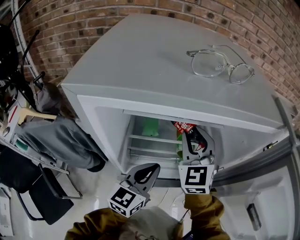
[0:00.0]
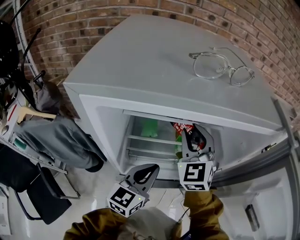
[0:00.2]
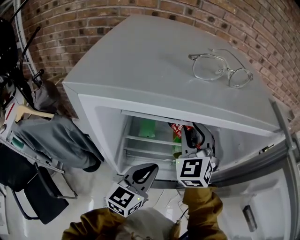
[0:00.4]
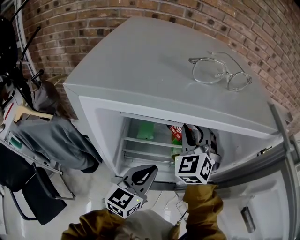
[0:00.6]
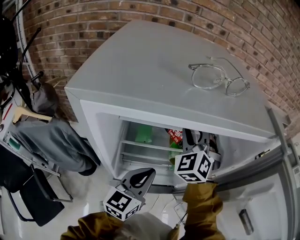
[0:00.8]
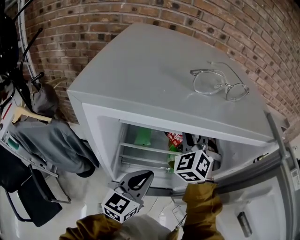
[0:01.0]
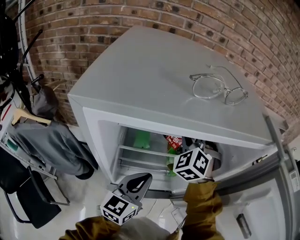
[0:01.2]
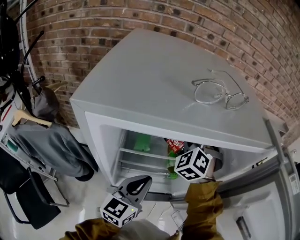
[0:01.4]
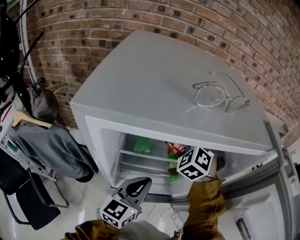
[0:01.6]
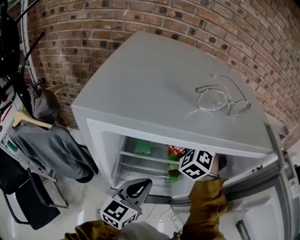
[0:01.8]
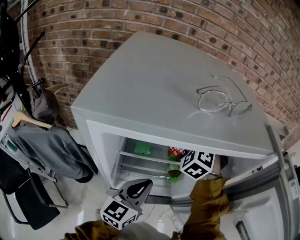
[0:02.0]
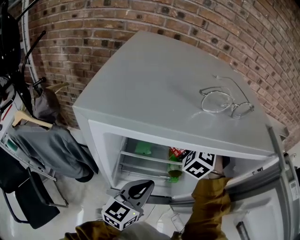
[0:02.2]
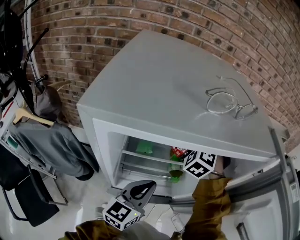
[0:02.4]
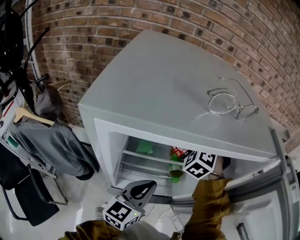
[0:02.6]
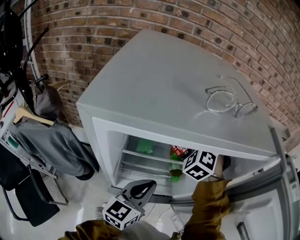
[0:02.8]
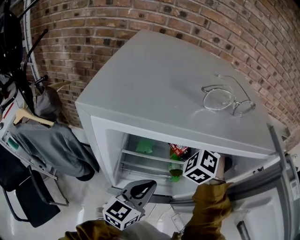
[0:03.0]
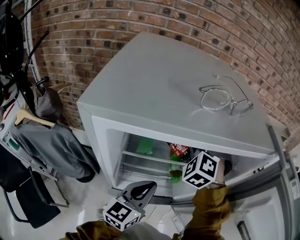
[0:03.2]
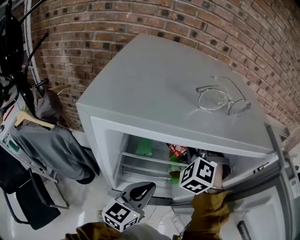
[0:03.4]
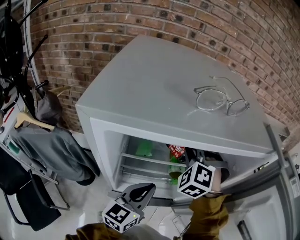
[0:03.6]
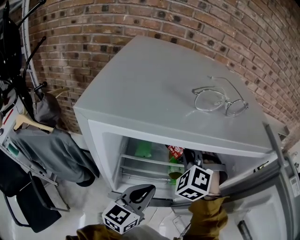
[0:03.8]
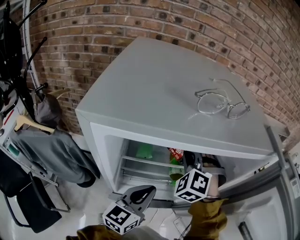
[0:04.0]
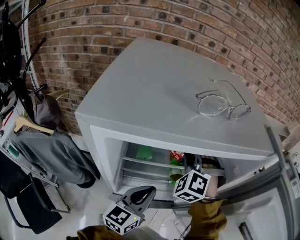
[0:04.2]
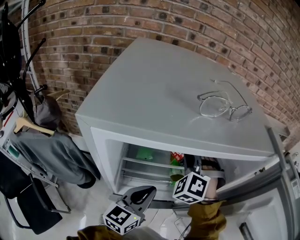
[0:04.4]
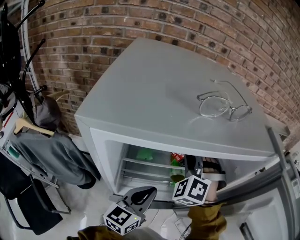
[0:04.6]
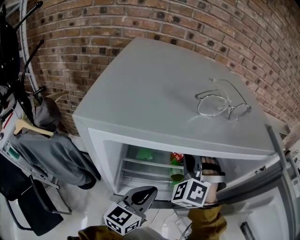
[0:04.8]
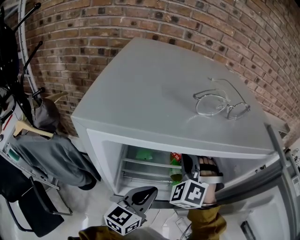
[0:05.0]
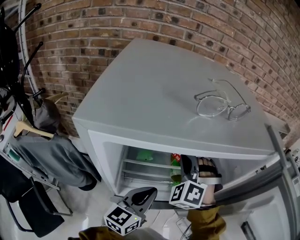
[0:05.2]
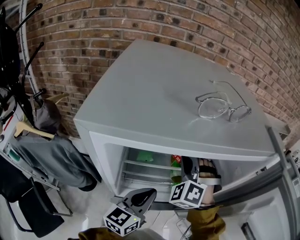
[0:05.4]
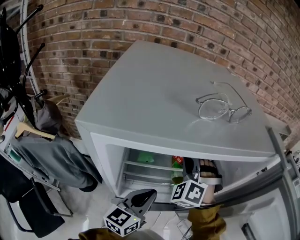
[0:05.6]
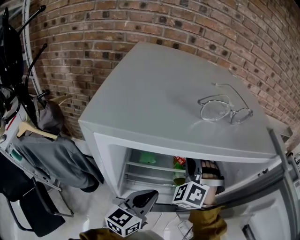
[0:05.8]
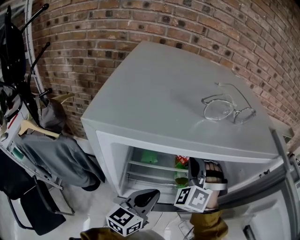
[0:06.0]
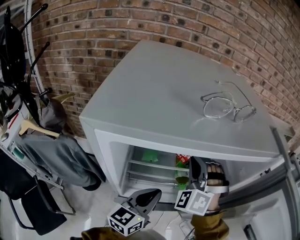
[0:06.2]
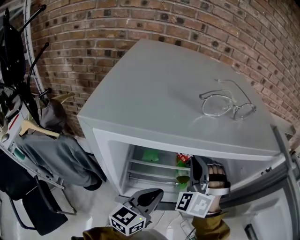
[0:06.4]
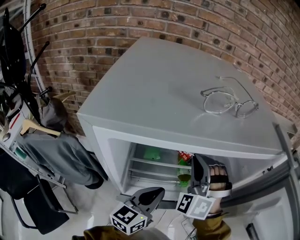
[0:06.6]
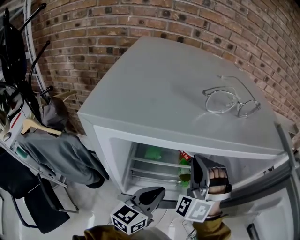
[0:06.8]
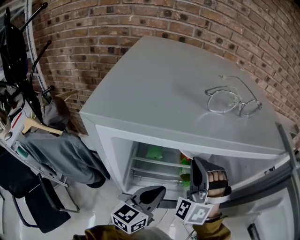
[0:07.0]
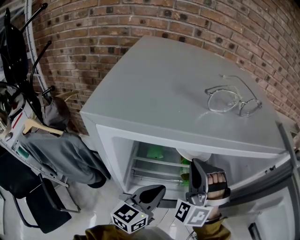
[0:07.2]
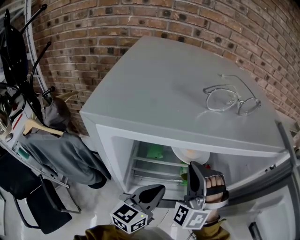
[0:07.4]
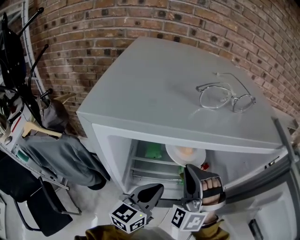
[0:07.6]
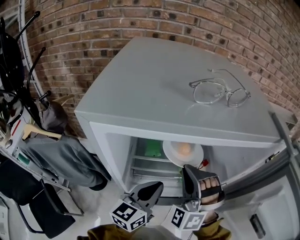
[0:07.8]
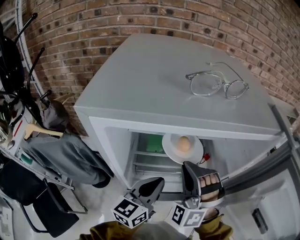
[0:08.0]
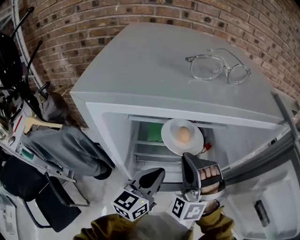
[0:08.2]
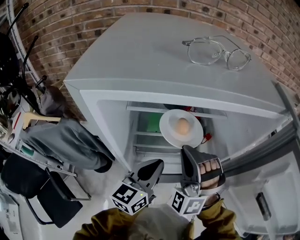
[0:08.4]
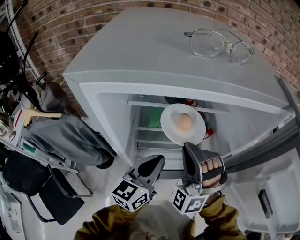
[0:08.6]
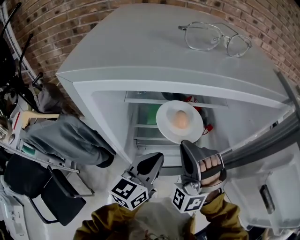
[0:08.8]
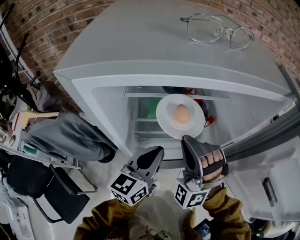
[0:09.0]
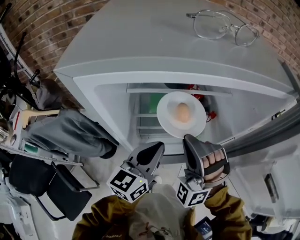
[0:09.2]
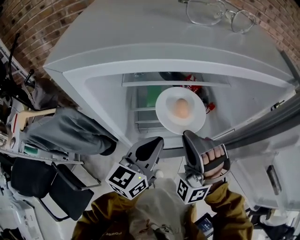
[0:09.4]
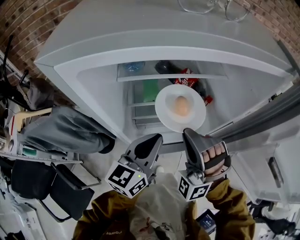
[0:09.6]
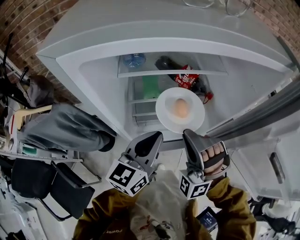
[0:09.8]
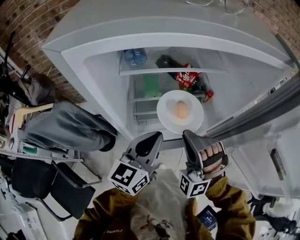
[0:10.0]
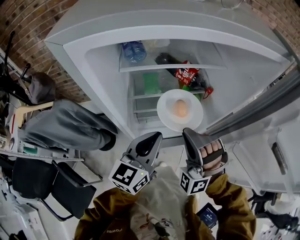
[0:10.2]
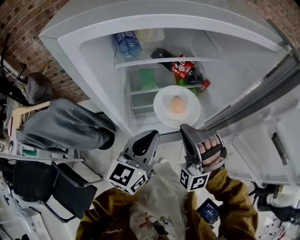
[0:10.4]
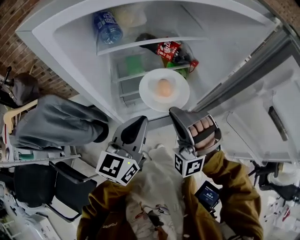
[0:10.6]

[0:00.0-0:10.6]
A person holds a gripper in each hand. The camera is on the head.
0:00.0 to 0:01.6: The right gripper heads forward, covering some 10 cm, and rotates approximately 40 degrees.
0:01.6 to 0:03.0: The grippers stay close to where they were, moving slightly.
0:03.0 to 0:04.6: The right gripper goes about 5 cm backward.
0:04.6 to 0:06.0: The grippers stay close to where they were, moving slightly.
0:06.0 to 0:07.6: The right gripper goes about 10 cm backward.
0:07.6 to 0:09.0: The right gripper is displaced backward by some 5 cm.
0:09.0 to 0:10.6: The left gripper travels backward by approximately 5 cm. The right gripper is displaced downward and backward by roughly 10 cm.

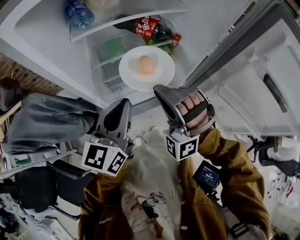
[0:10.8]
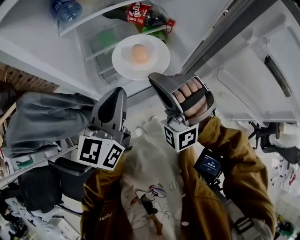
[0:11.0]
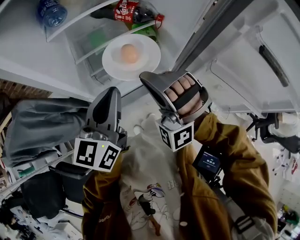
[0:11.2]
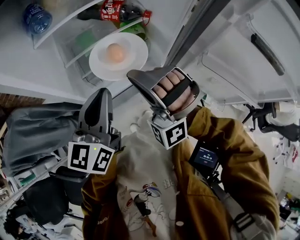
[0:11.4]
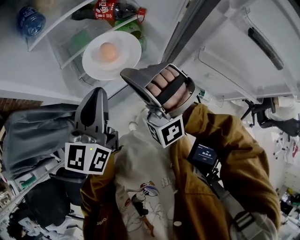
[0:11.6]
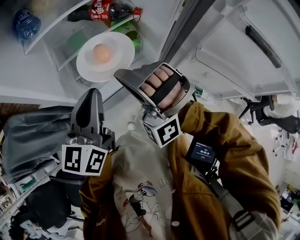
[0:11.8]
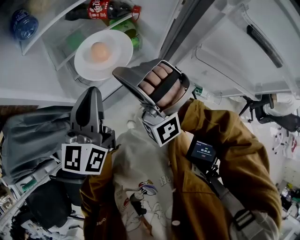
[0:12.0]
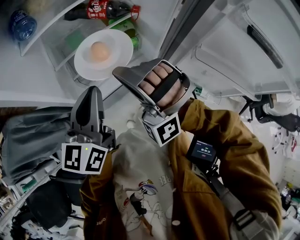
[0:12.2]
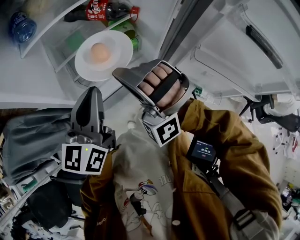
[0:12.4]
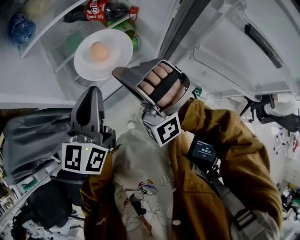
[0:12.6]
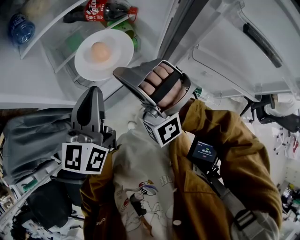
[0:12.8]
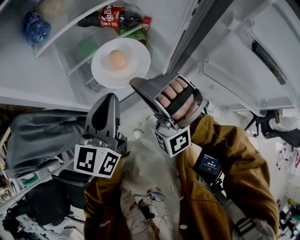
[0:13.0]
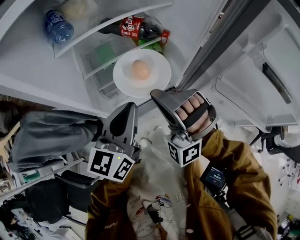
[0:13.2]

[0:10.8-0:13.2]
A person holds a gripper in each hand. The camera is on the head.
0:10.8 to 0:13.2: The grippers stay close to where they were, moving slightly.

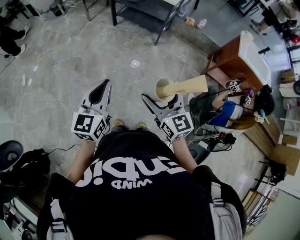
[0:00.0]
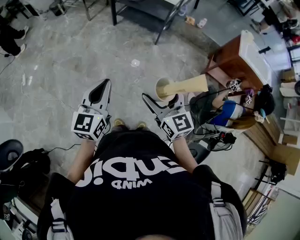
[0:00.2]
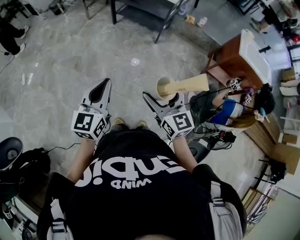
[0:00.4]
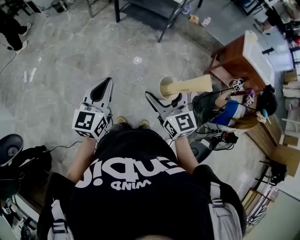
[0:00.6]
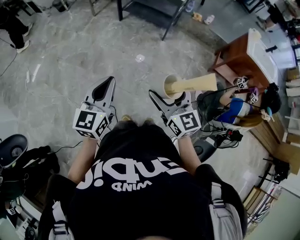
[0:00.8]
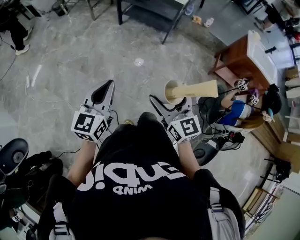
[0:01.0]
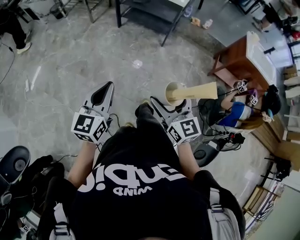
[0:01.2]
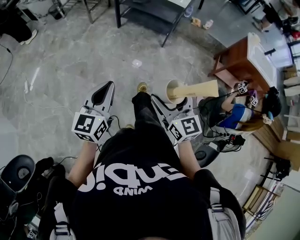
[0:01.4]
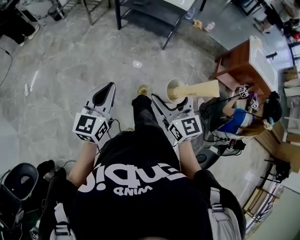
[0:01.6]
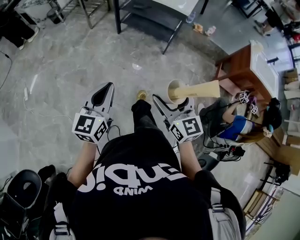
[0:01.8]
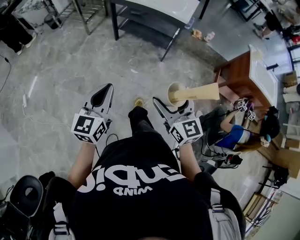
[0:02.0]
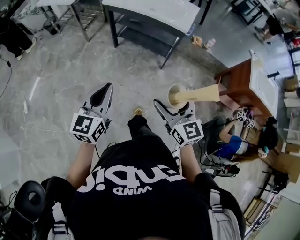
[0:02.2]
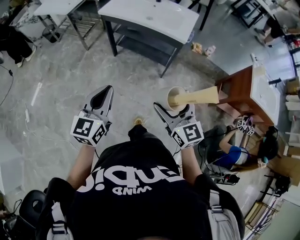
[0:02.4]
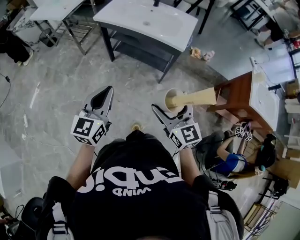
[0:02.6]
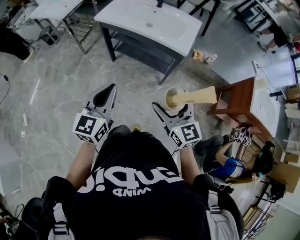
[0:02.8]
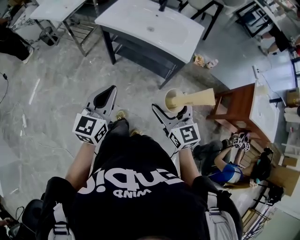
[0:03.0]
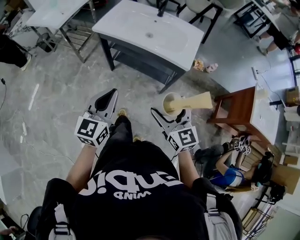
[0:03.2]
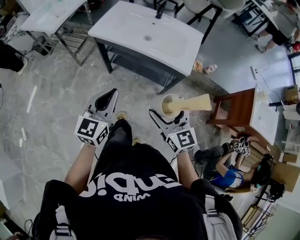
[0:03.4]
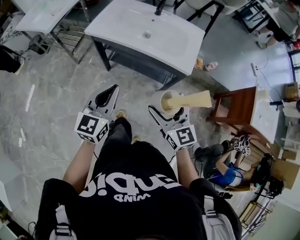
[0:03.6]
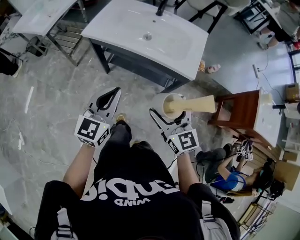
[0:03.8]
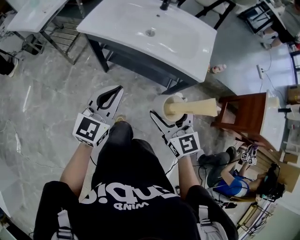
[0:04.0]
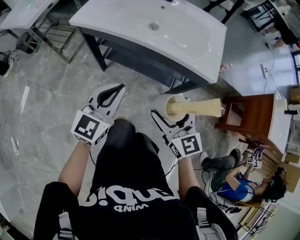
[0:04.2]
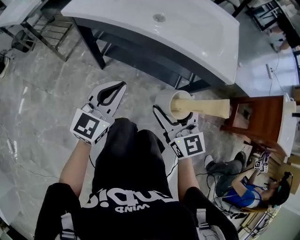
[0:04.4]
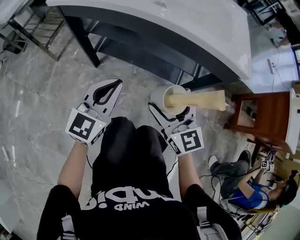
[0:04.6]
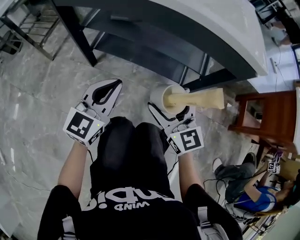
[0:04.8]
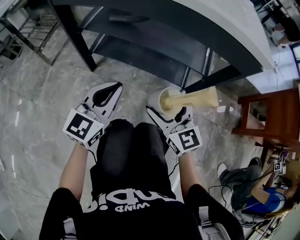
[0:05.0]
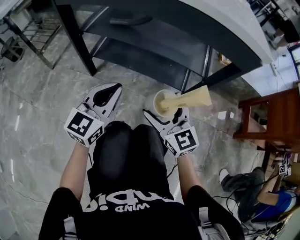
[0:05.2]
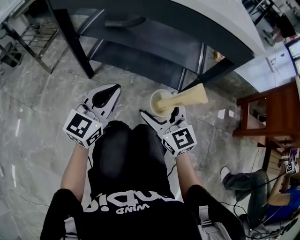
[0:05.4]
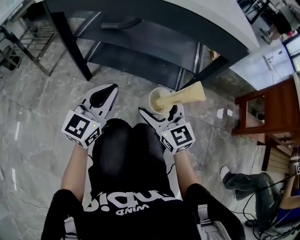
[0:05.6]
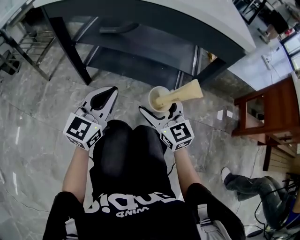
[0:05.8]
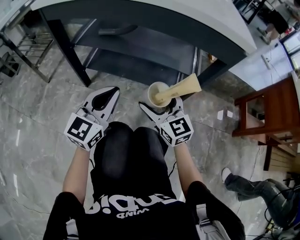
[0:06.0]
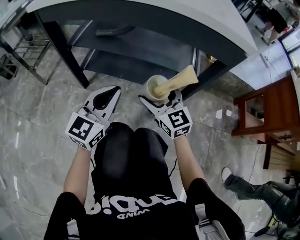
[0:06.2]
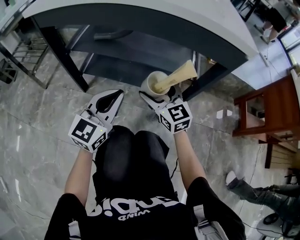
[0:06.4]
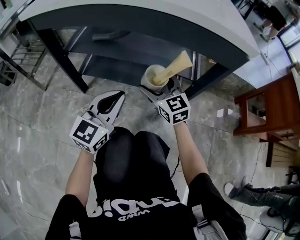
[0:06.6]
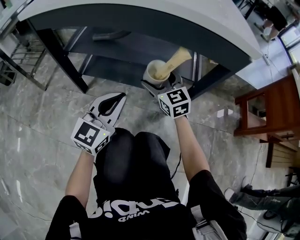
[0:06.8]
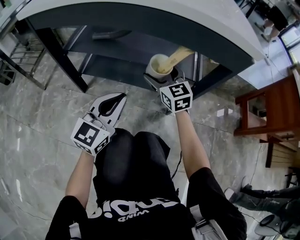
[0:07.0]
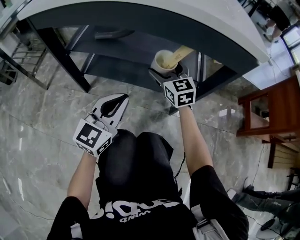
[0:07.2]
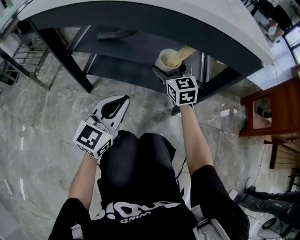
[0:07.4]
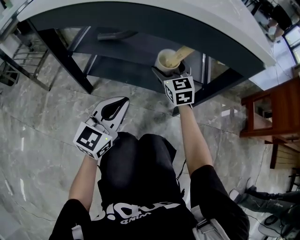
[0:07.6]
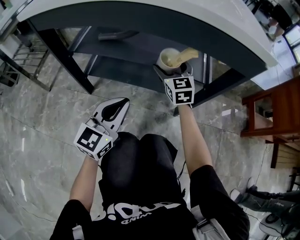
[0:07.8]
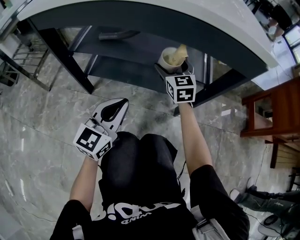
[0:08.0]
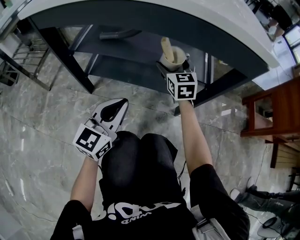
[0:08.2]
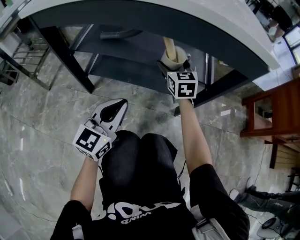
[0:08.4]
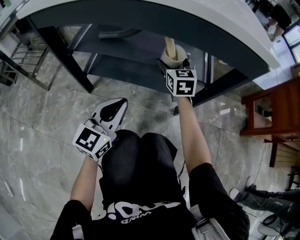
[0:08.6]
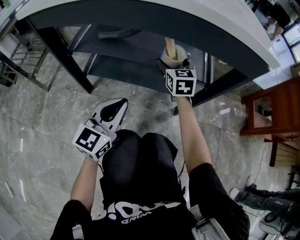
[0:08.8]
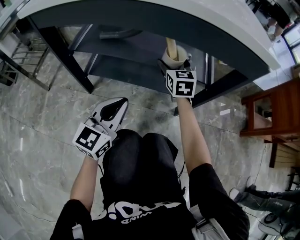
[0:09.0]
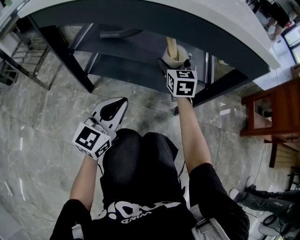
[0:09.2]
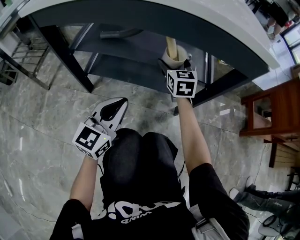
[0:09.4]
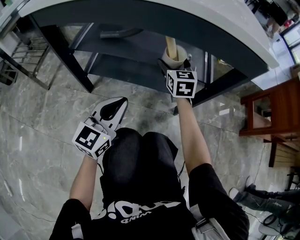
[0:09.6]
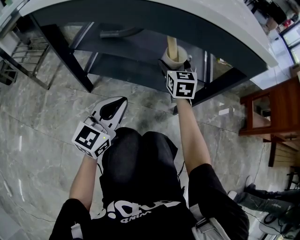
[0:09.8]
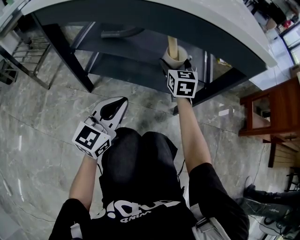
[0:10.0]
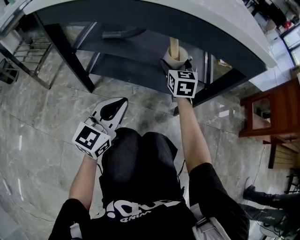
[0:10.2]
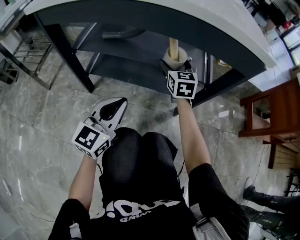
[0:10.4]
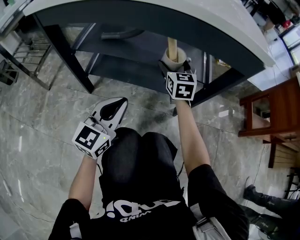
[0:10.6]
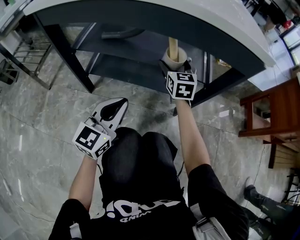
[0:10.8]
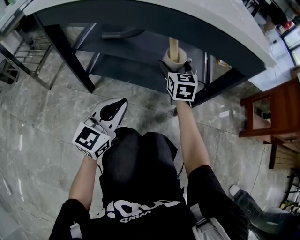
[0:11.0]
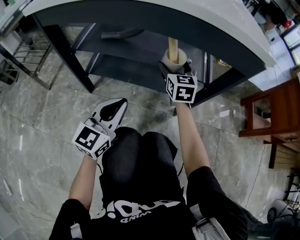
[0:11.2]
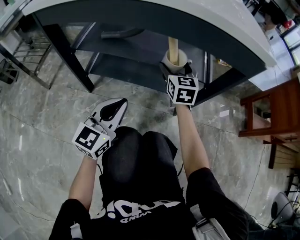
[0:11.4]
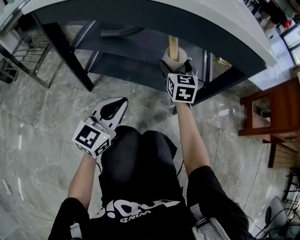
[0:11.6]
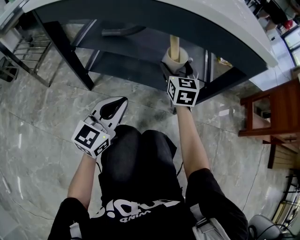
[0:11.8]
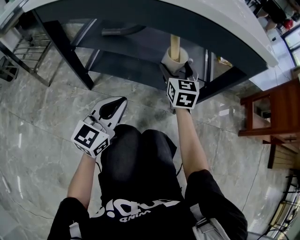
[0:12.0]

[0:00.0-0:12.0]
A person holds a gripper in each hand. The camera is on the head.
0:00.0 to 0:01.6: Both grippers travel together forward and to the left, roughly 10 cm.
0:01.6 to 0:03.0: The pair of grippers is taken forward, about 40 cm.
0:03.0 to 0:04.4: The grippers both shift downward and forward by roughly 35 cm.
0:04.4 to 0:06.0: The grippers both shift downward by about 20 cm.
0:06.0 to 0:07.6: The right gripper is displaced forward by some 20 cm; the left gripper shifts by about 5 cm.
0:07.6 to 0:09.0: The grippers stay close to where they were, moving slightly.
0:09.0 to 0:10.4: Neither gripper changes place.
0:10.4 to 0:12.0: The grippers move only a little.
